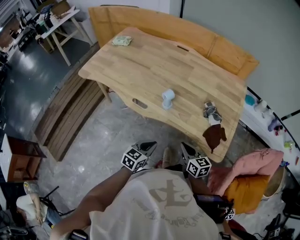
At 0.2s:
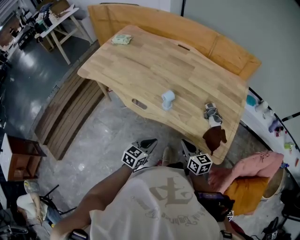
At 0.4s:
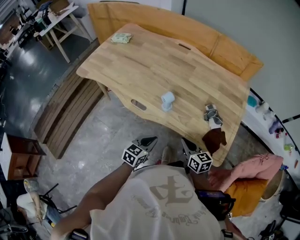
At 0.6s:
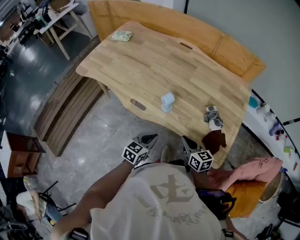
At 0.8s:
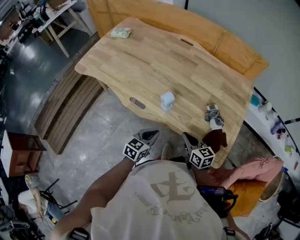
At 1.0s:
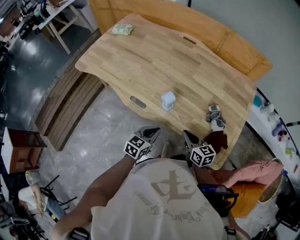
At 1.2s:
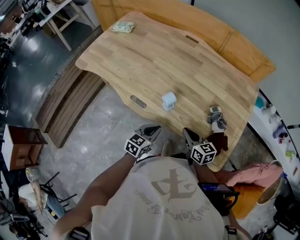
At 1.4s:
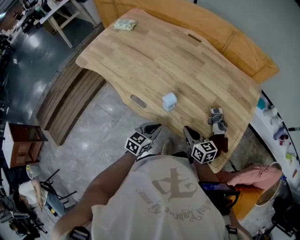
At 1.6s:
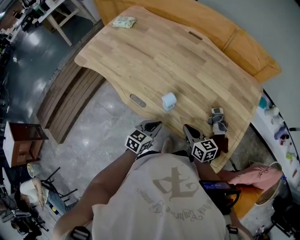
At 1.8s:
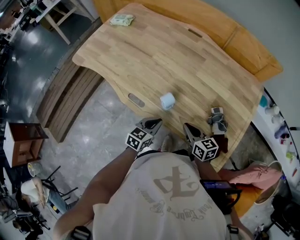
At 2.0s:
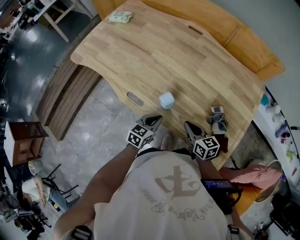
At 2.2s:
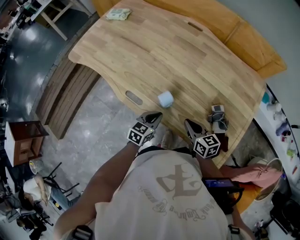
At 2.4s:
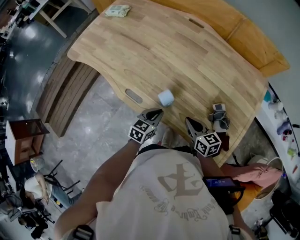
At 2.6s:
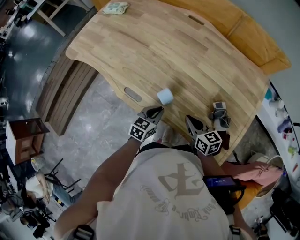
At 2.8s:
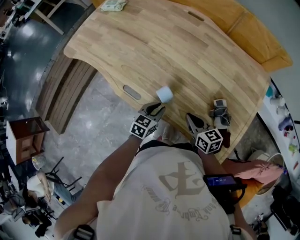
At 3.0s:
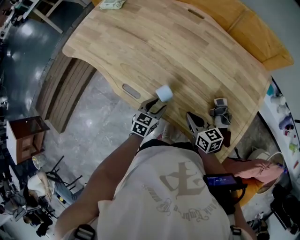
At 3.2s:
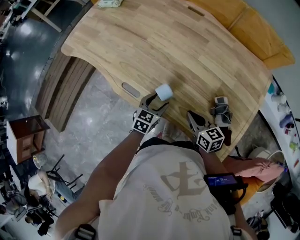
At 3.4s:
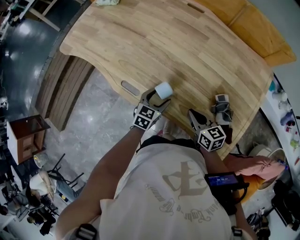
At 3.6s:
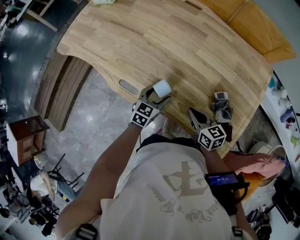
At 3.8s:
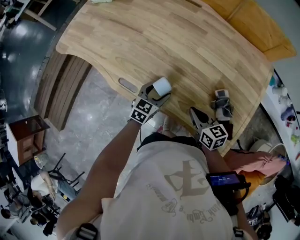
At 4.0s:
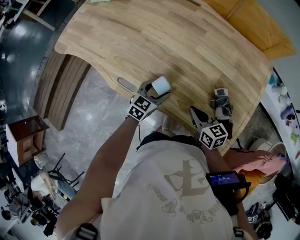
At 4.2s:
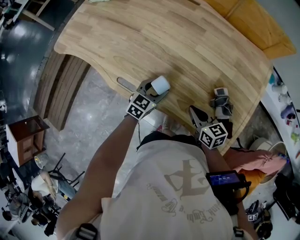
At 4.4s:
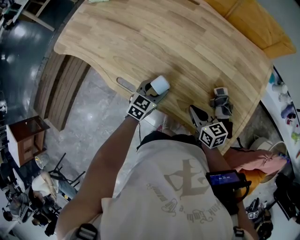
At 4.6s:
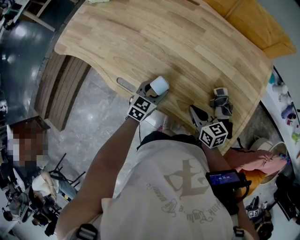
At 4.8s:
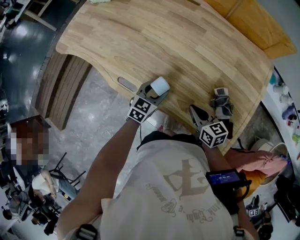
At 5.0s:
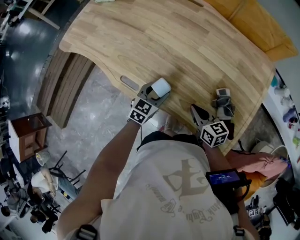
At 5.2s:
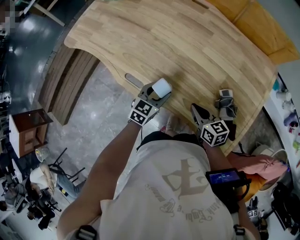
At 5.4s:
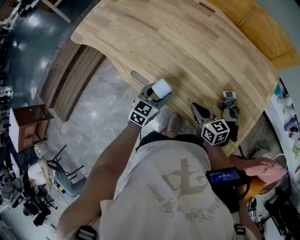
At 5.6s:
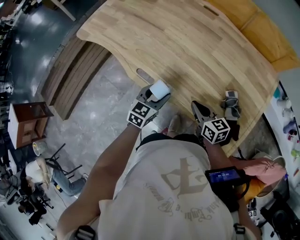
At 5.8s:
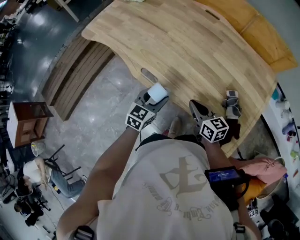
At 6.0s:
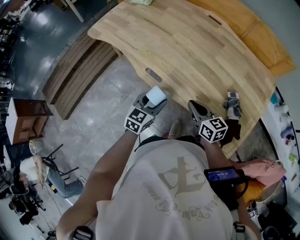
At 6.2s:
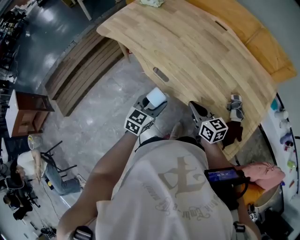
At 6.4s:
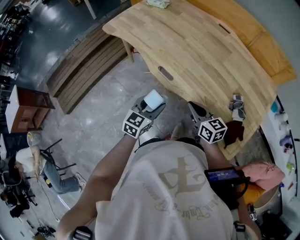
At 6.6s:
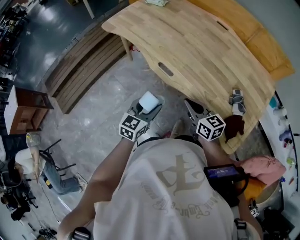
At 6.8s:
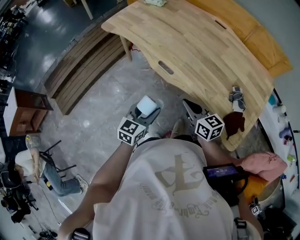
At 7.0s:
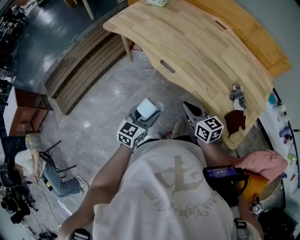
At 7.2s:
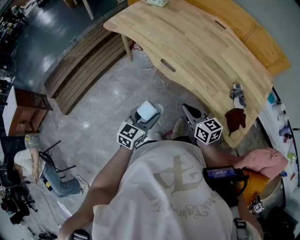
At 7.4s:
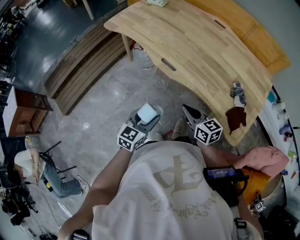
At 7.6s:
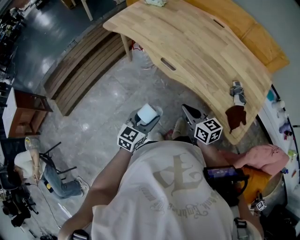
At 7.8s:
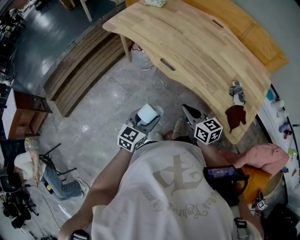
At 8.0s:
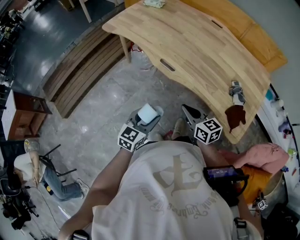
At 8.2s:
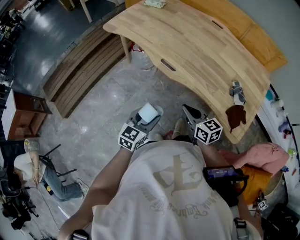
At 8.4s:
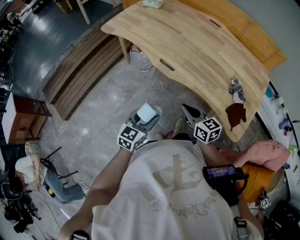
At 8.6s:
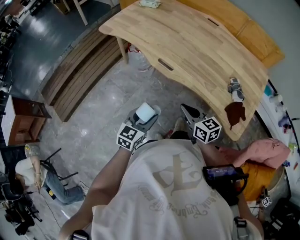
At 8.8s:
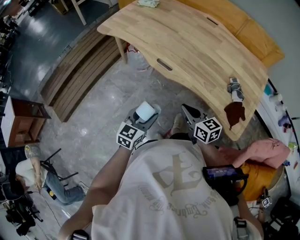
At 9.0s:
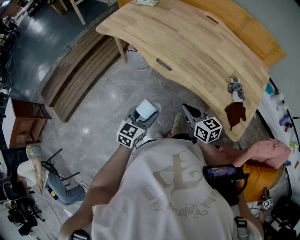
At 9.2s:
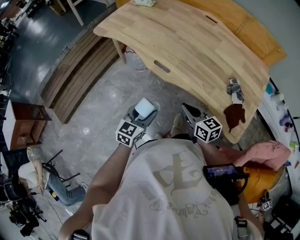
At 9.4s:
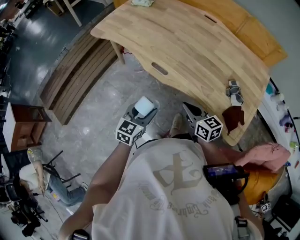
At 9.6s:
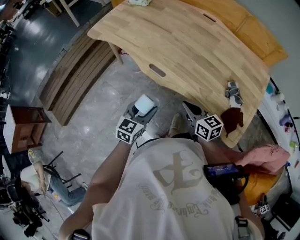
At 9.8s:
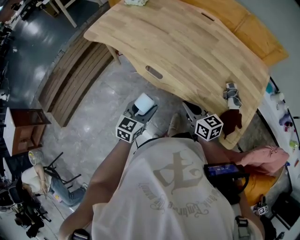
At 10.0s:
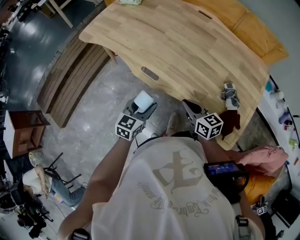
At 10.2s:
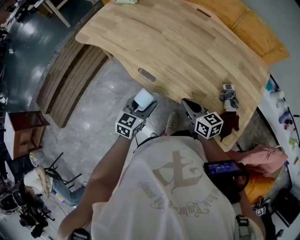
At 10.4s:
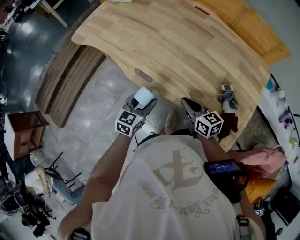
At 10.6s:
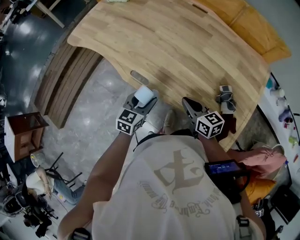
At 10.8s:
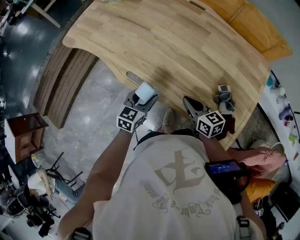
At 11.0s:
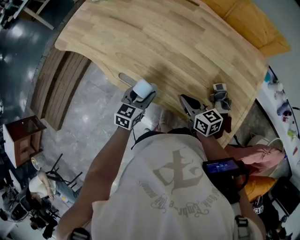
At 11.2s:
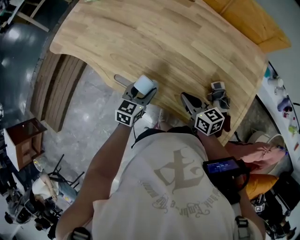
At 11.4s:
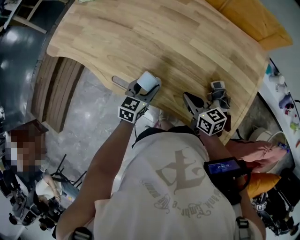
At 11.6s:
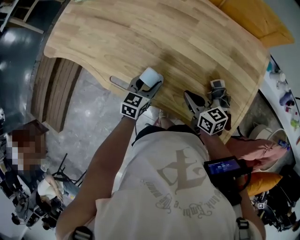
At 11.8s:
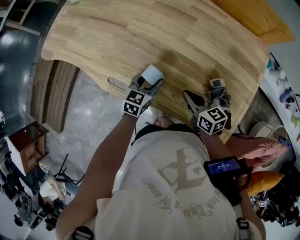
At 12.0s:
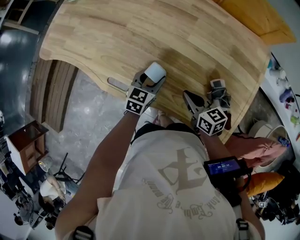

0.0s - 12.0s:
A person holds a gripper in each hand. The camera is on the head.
0.0s - 1.6s: Both grippers move forward, some 15 cm.
1.6s - 3.0s: The left gripper travels forward and downward by approximately 10 cm, and opens its fingers. The right gripper changes place by approximately 5 cm.
3.0s - 4.4s: The left gripper shifts by some 5 cm.
4.4s - 6.0s: The right gripper goes roughly 15 cm to the left and upward; the left gripper moves backward, to the left and upward, approximately 20 cm.
6.0s - 7.6s: The left gripper is displaced backward and to the left by about 20 cm, while the right gripper moves to the left and backward, some 20 cm.
7.6s - 9.0s: The grippers stay close to where they were, moving slightly.
9.0s - 10.4s: The two grippers go some 20 cm forward and to the right.
10.4s - 12.0s: The left gripper moves forward, to the right and downward, some 25 cm, while the right gripper travels to the right, forward and downward by about 15 cm.

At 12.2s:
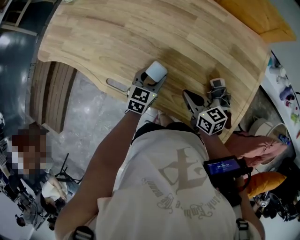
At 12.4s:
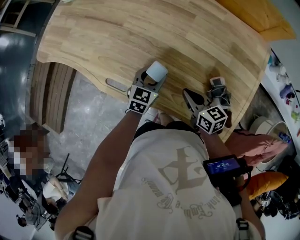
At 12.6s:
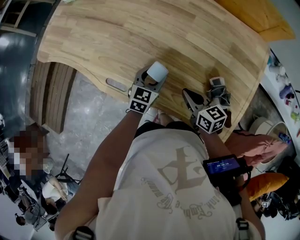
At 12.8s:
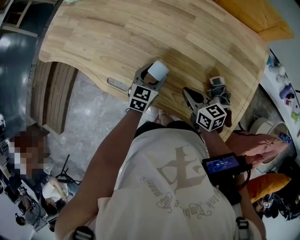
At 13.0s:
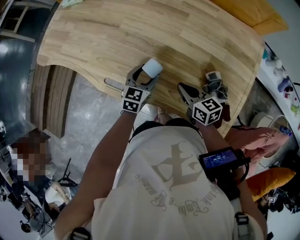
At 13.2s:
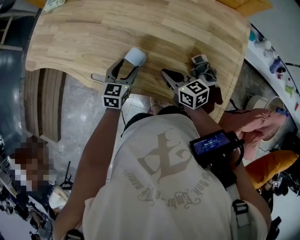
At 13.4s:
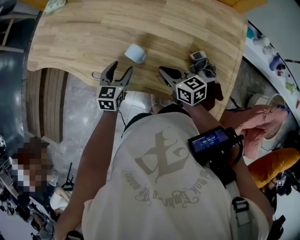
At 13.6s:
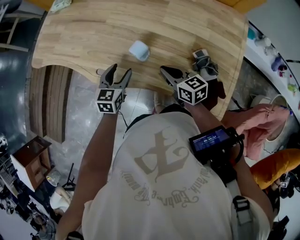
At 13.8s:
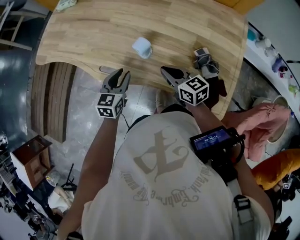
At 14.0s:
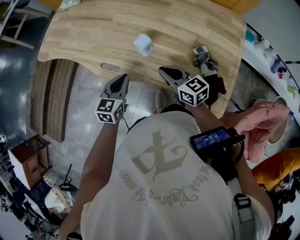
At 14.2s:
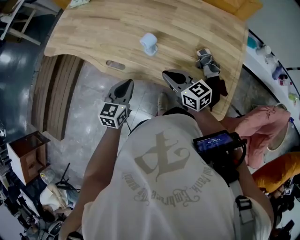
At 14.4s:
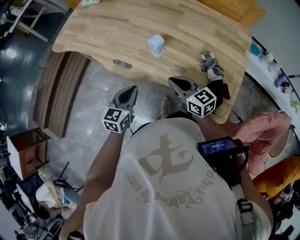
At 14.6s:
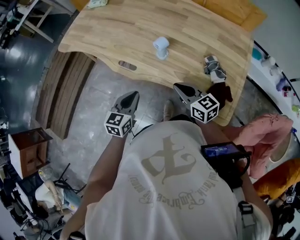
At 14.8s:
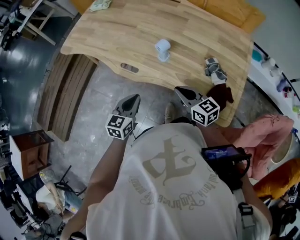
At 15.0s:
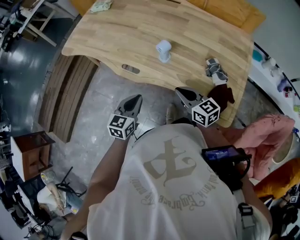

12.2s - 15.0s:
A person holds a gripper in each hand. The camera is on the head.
12.2s - 13.6s: The right gripper ends up approximately 5 cm from where it was, while the left gripper moves to the left, backward and upward, about 15 cm.
13.6s - 15.0s: The grippers both shift backward by roughly 15 cm. The left gripper closes up.

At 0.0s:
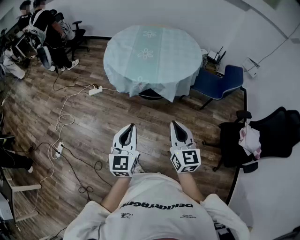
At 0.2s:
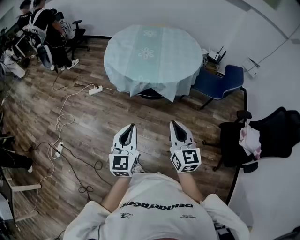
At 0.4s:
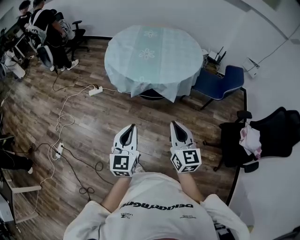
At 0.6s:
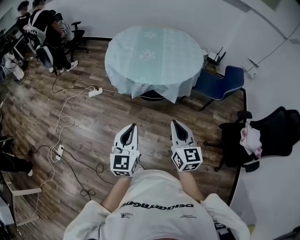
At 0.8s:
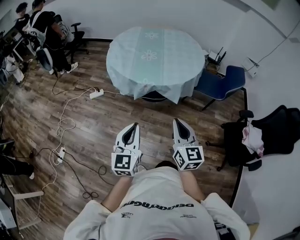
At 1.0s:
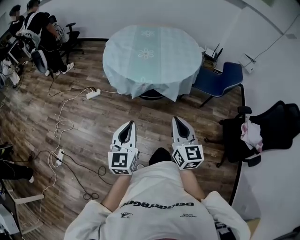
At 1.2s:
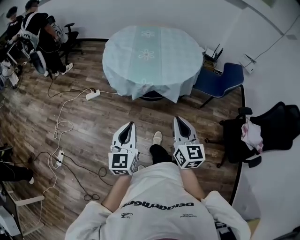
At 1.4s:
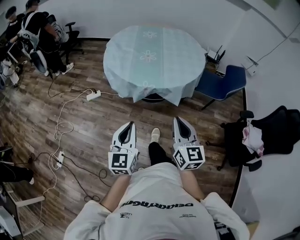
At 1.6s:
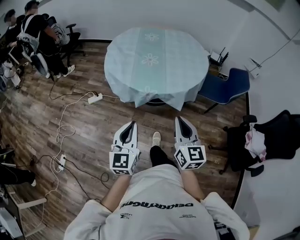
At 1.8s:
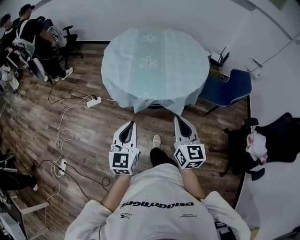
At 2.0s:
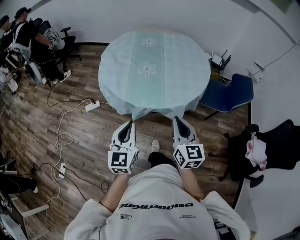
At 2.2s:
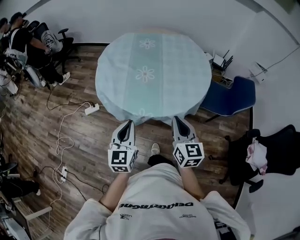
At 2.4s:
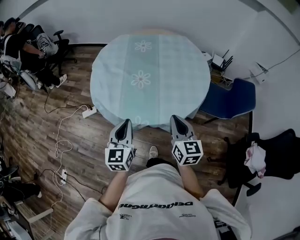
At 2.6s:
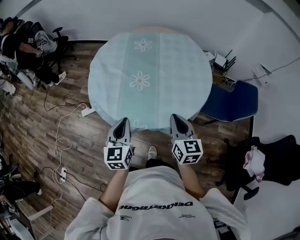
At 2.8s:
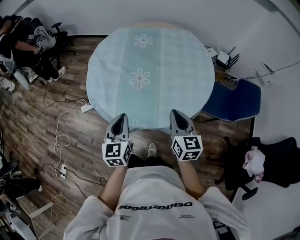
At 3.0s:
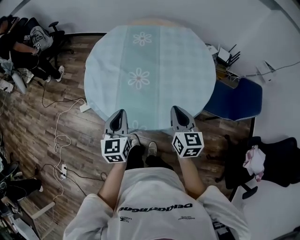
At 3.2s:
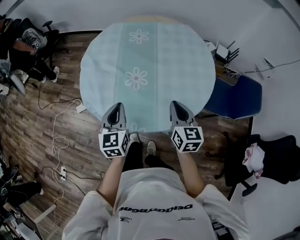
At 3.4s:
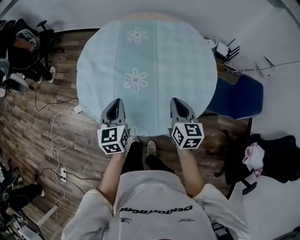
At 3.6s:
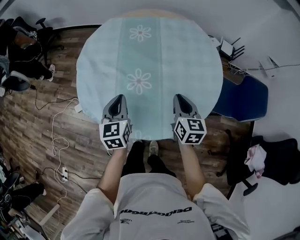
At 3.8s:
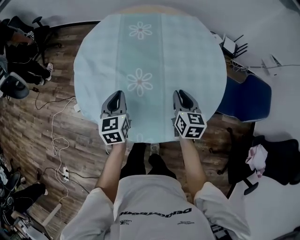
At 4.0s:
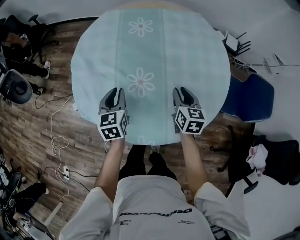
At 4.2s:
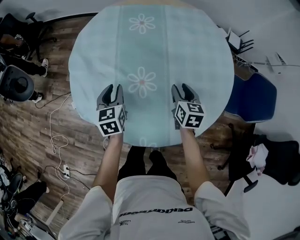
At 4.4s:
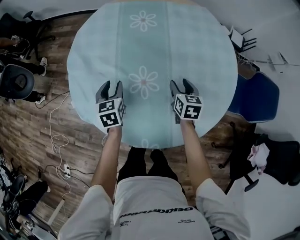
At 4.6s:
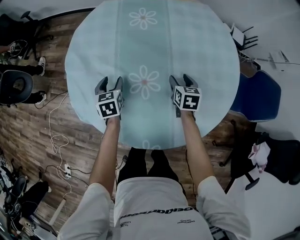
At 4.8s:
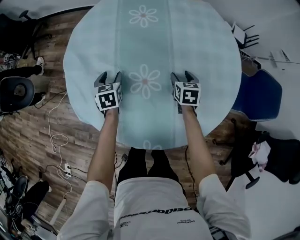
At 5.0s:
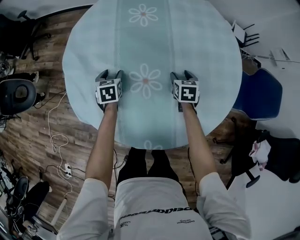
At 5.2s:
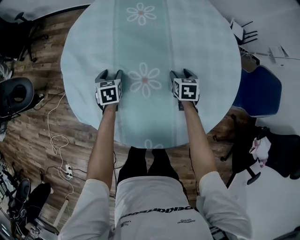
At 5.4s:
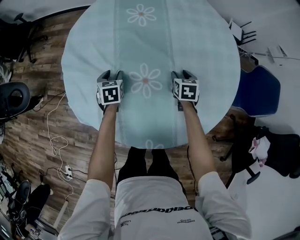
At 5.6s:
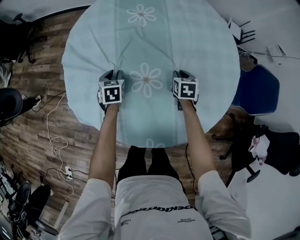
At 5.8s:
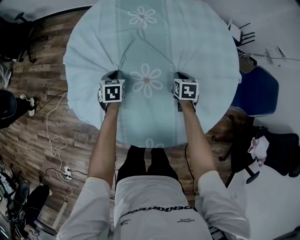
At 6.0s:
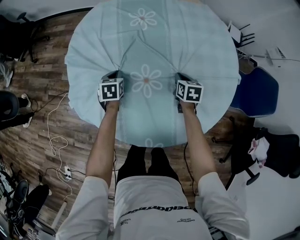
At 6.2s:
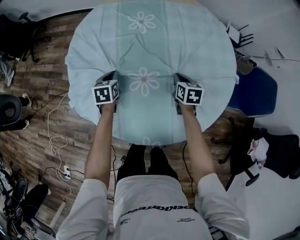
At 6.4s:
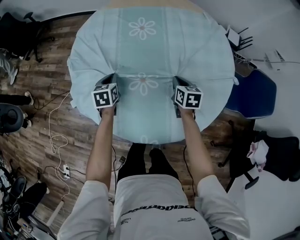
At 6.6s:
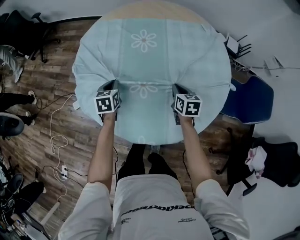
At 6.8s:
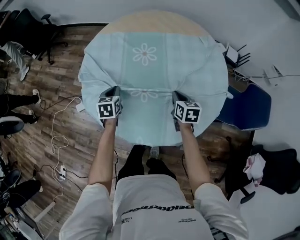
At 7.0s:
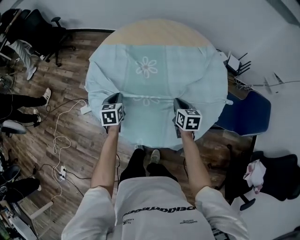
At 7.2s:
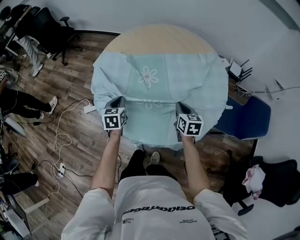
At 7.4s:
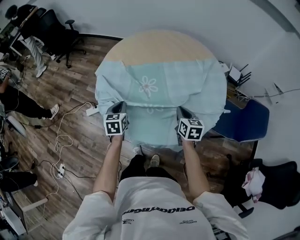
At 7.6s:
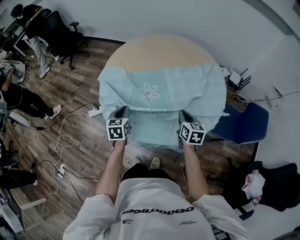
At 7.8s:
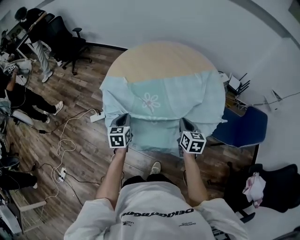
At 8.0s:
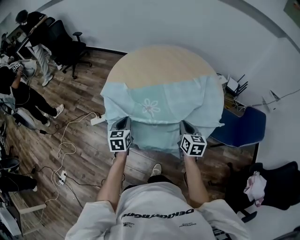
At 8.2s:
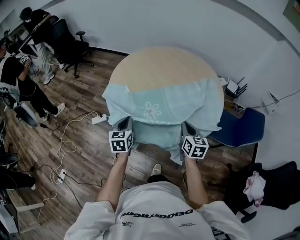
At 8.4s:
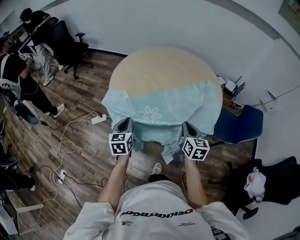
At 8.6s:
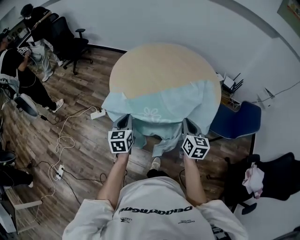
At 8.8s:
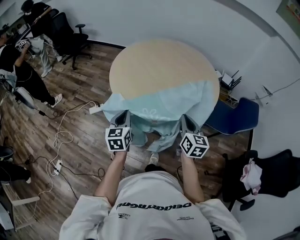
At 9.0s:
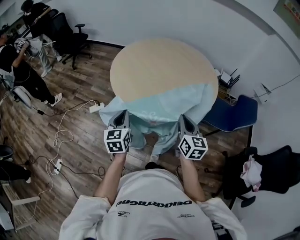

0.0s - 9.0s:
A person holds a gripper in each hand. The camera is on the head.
0.0s - 1.6s: The two grippers go some 15 cm forward and to the left.
1.6s - 3.0s: Both grippers are carried forward, about 40 cm.
3.0s - 4.4s: Both grippers travel together forward and downward, some 35 cm. The right gripper swivels some 20 degrees, and opens. The left gripper swivels some 20 degrees, and opens up.
4.4s - 6.0s: The left gripper travels downward and forward by some 10 cm, and closes, while the right gripper moves downward, roughly 5 cm, and closes up.
6.0s - 7.6s: Both grippers travel together backward and upward, about 30 cm. The right gripper rotates approximately 20 degrees; the left gripper rotates some 20 degrees.
7.6s - 9.0s: Both grippers travel together backward and upward, approximately 25 cm.
